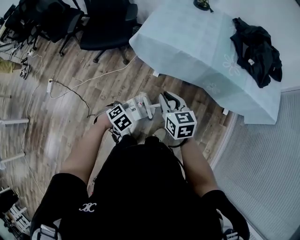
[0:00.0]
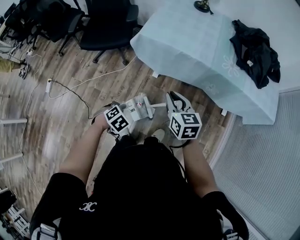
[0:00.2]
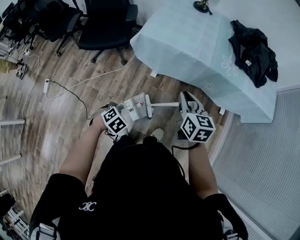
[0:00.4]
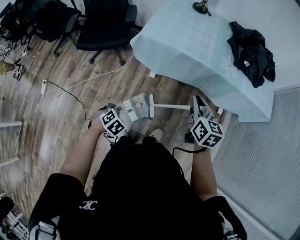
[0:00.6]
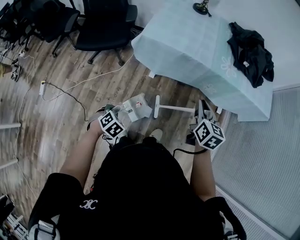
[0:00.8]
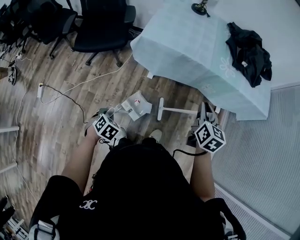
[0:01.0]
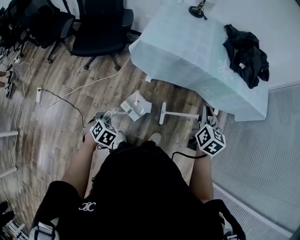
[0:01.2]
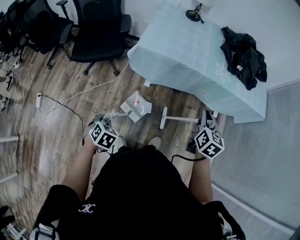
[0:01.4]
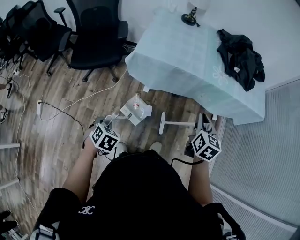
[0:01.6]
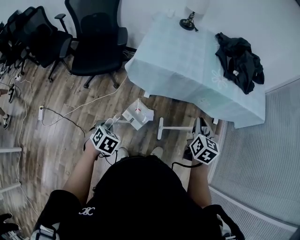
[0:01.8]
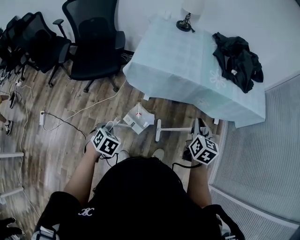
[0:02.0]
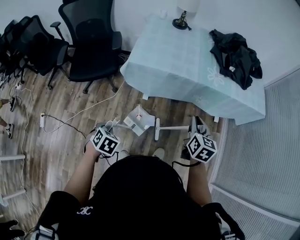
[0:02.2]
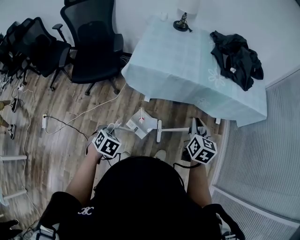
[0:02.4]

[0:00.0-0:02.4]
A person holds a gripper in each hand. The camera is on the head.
0:00.0 to 0:01.2: The right gripper shifts by roughly 15 cm, and rotates approximately 40 degrees.

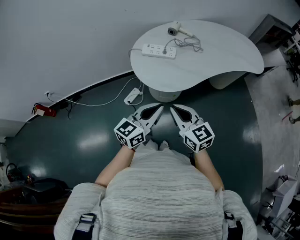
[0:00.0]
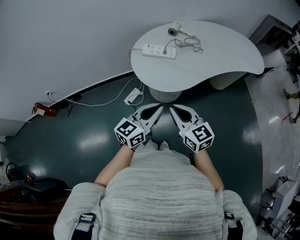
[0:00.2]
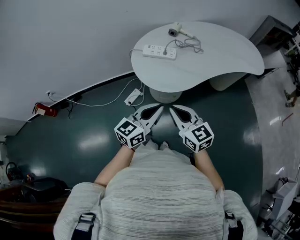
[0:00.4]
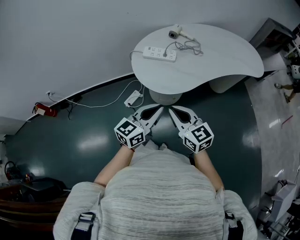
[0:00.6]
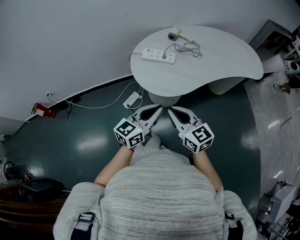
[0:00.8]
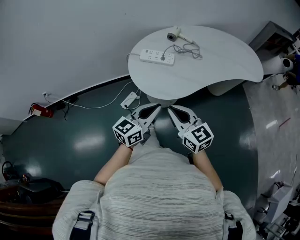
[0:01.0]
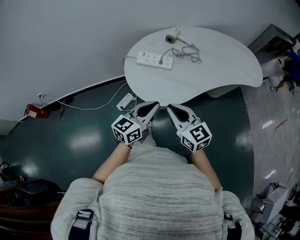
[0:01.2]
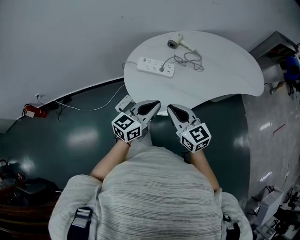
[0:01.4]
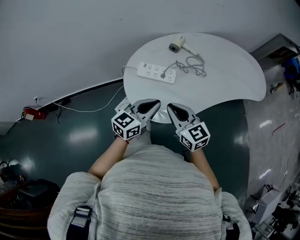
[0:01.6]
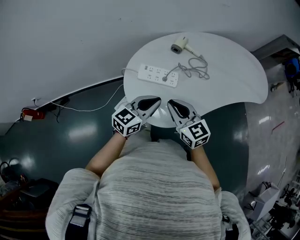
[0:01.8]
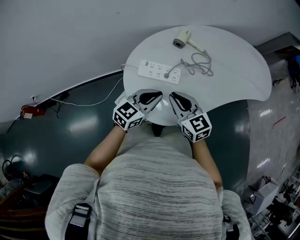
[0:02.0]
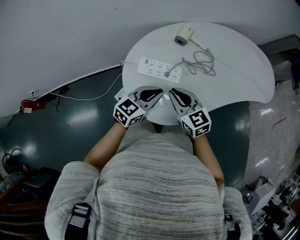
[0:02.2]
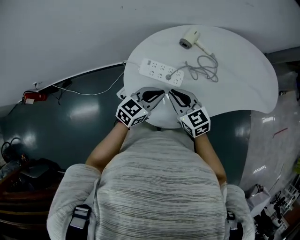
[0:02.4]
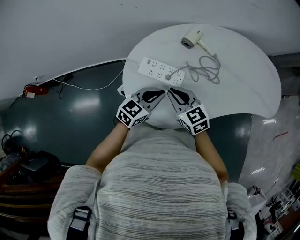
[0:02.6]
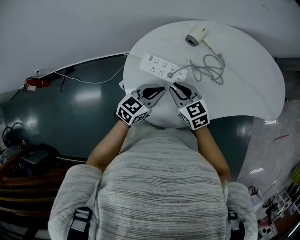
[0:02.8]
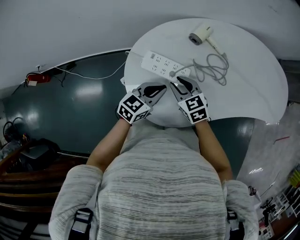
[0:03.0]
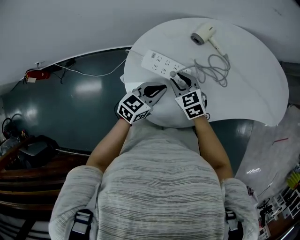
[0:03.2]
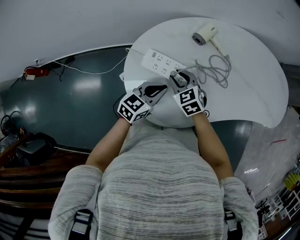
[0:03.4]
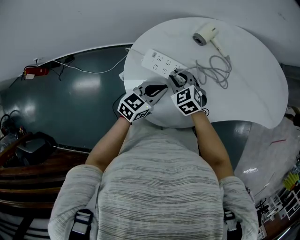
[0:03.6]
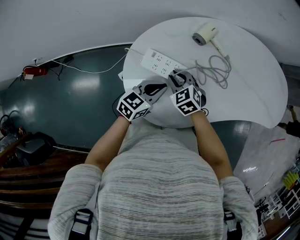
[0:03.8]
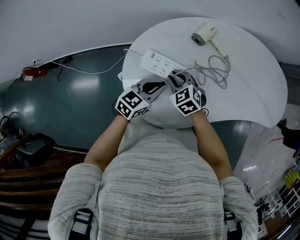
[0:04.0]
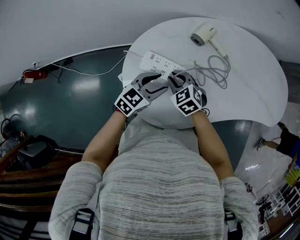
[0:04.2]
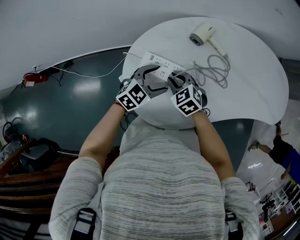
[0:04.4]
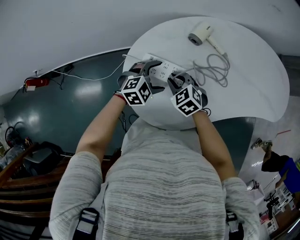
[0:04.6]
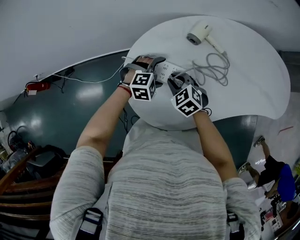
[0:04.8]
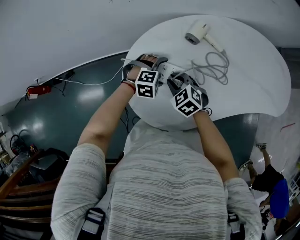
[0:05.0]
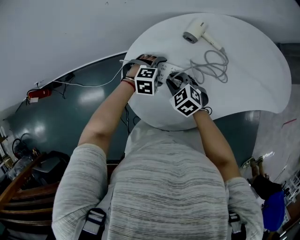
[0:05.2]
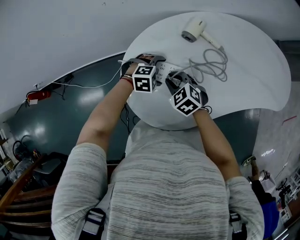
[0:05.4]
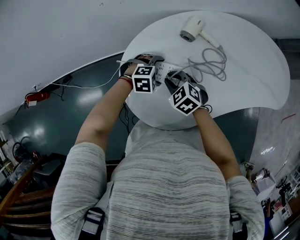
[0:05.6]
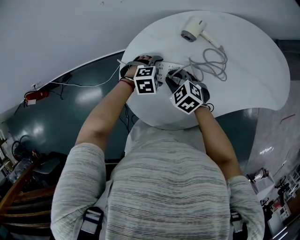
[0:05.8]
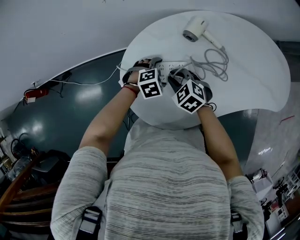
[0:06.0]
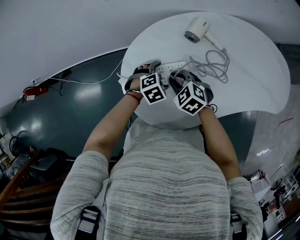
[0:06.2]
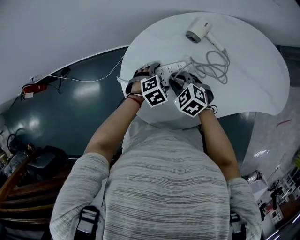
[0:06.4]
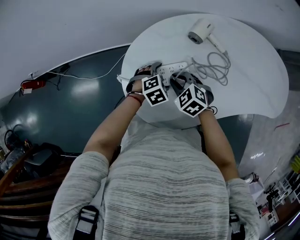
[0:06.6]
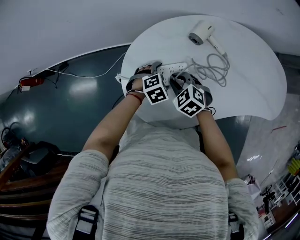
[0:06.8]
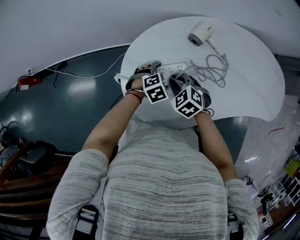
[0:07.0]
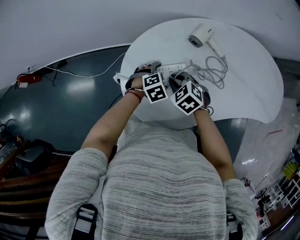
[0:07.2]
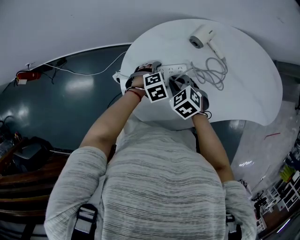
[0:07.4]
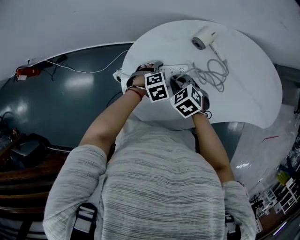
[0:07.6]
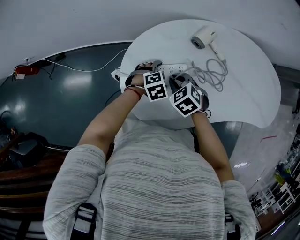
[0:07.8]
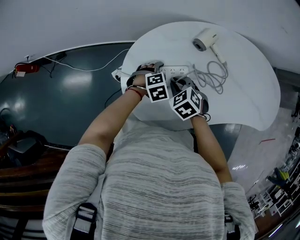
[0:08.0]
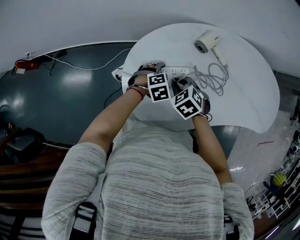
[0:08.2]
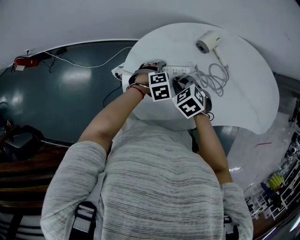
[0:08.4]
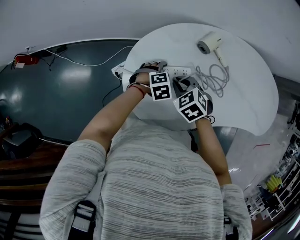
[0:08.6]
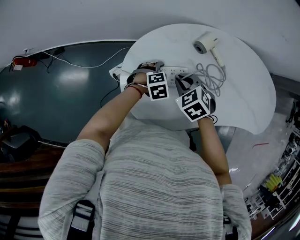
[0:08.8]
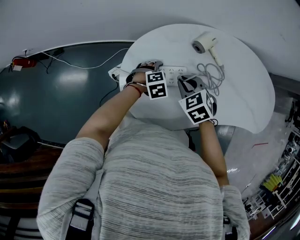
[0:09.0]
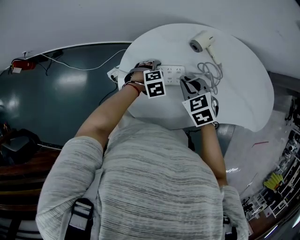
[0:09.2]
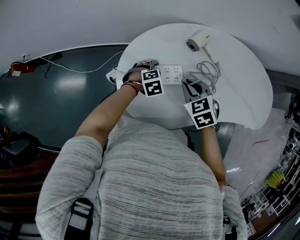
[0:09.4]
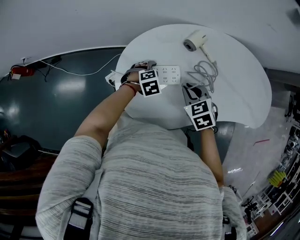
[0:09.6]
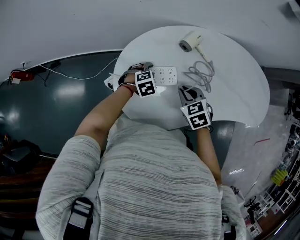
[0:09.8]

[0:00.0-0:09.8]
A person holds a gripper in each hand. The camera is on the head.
0:00.0 to 0:01.4: The two grippers go approximately 15 cm forward.
0:01.4 to 0:02.8: Both grippers move forward and downward, roughly 20 cm. The right gripper turns by about 20 degrees.
0:02.8 to 0:04.2: The left gripper opens up. Meanwhile the right gripper goes about 5 cm downward, and rotates about 20 degrees.
0:04.2 to 0:05.6: The left gripper goes roughly 10 cm downward, angles its fingers downward, by approximately 30 degrees, and opens its fingers.
0:05.6 to 0:07.0: The left gripper turns by some 30 degrees.
0:07.0 to 0:08.4: The grippers stay close to where they were, moving slightly.
0:08.4 to 0:09.8: The right gripper shifts by some 10 cm.

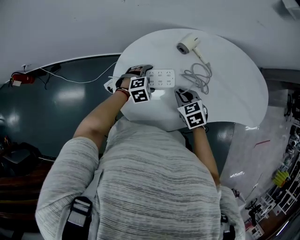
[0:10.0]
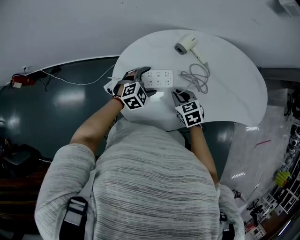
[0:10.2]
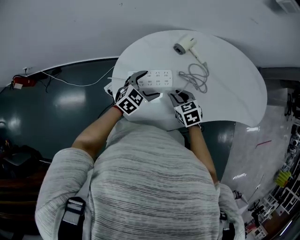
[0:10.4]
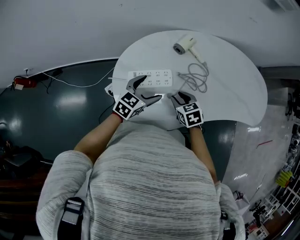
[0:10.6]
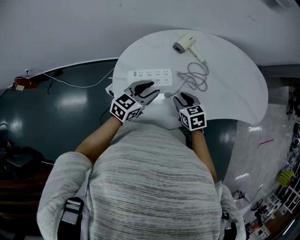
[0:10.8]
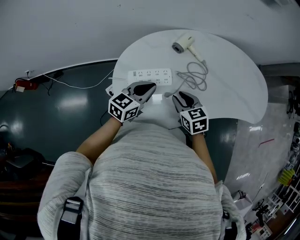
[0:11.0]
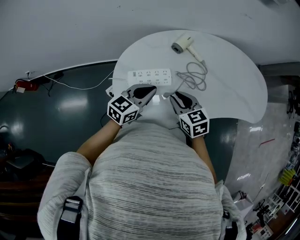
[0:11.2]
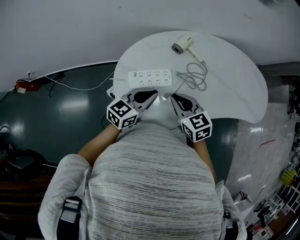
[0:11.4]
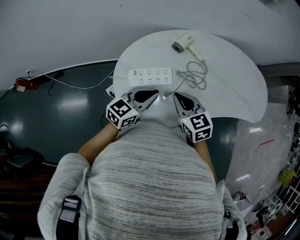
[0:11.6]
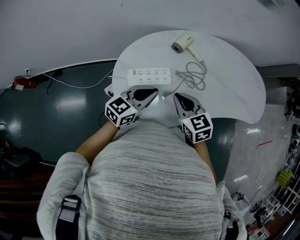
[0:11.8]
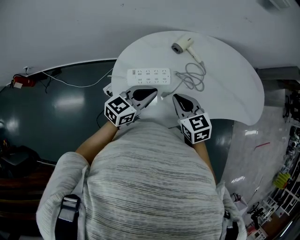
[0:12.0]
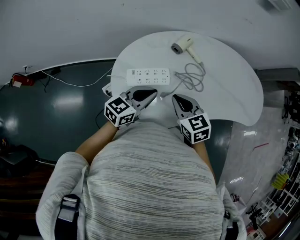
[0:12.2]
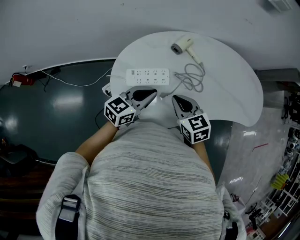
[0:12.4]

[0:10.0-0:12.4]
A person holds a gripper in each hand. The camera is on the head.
0:10.0 to 0:11.2: The left gripper moves upward, approximately 15 cm, tips its fingers upward by some 40 degrees, and closes up. The right gripper goes roughly 10 cm upward.
0:11.2 to 0:12.4: The right gripper closes up.

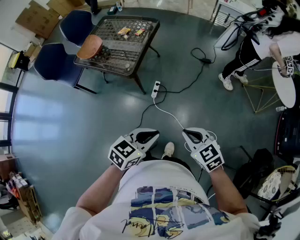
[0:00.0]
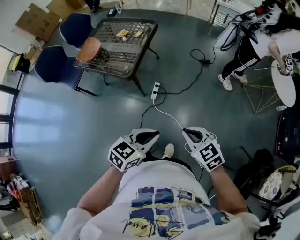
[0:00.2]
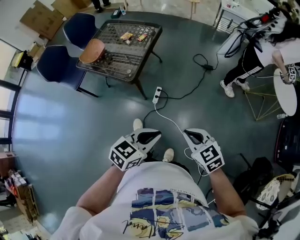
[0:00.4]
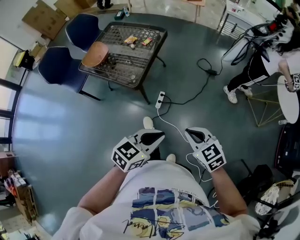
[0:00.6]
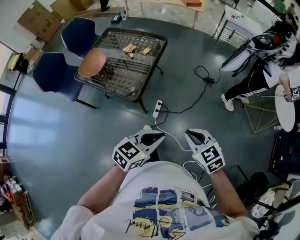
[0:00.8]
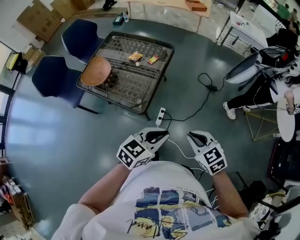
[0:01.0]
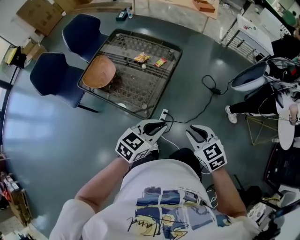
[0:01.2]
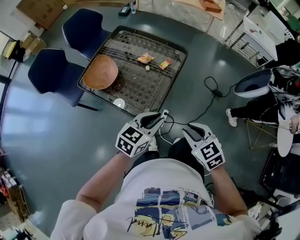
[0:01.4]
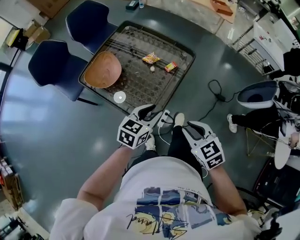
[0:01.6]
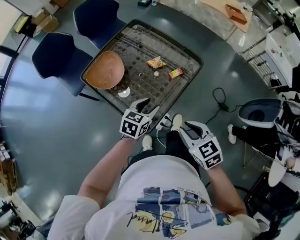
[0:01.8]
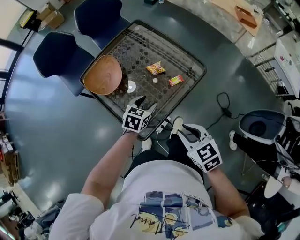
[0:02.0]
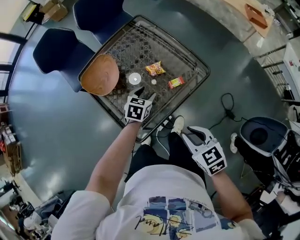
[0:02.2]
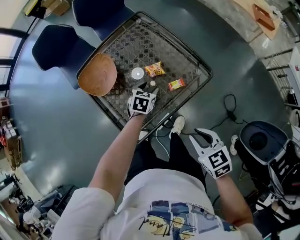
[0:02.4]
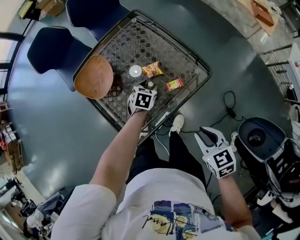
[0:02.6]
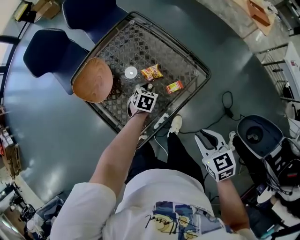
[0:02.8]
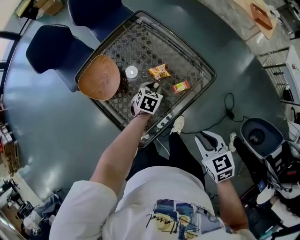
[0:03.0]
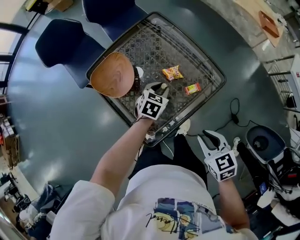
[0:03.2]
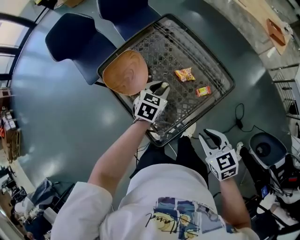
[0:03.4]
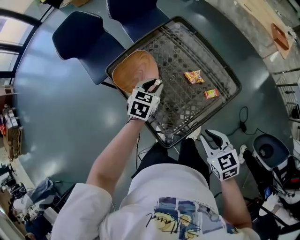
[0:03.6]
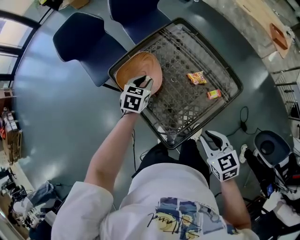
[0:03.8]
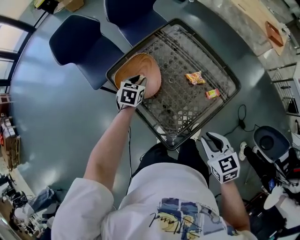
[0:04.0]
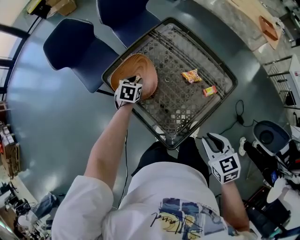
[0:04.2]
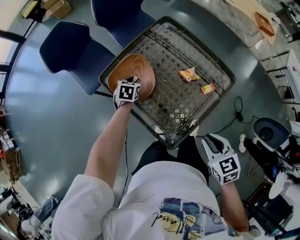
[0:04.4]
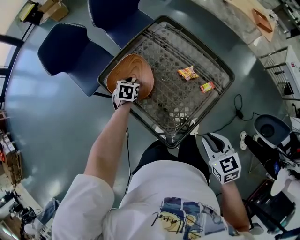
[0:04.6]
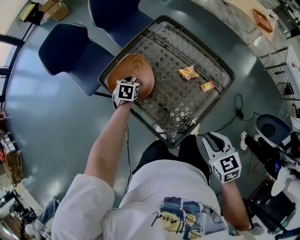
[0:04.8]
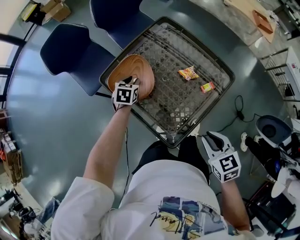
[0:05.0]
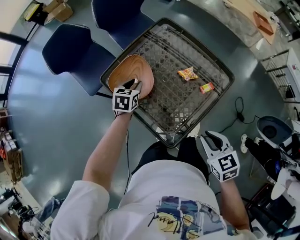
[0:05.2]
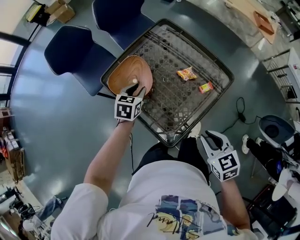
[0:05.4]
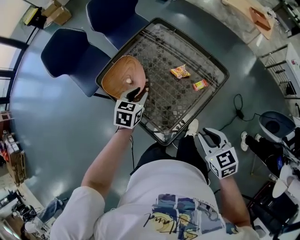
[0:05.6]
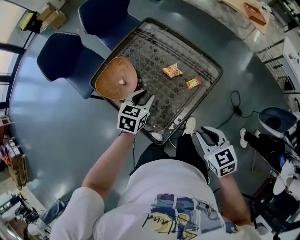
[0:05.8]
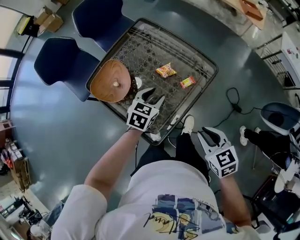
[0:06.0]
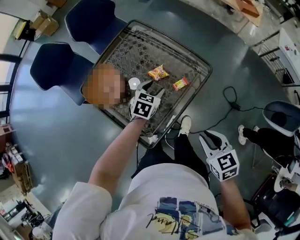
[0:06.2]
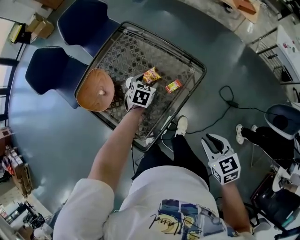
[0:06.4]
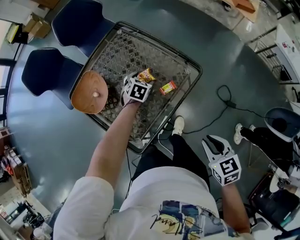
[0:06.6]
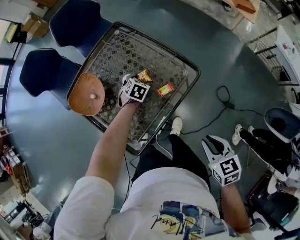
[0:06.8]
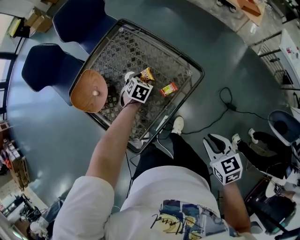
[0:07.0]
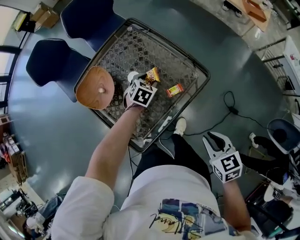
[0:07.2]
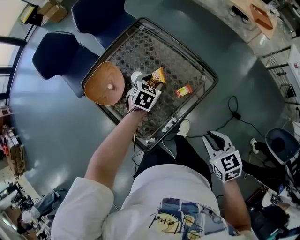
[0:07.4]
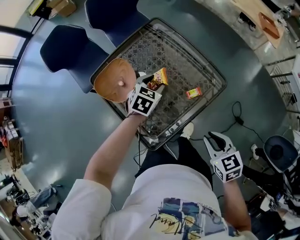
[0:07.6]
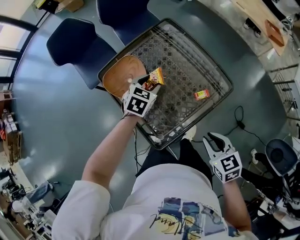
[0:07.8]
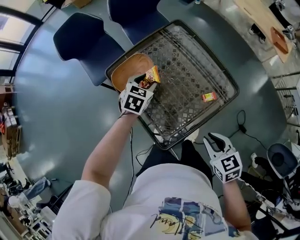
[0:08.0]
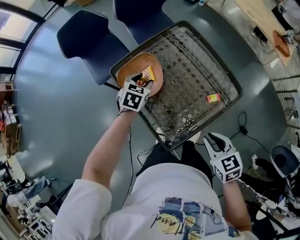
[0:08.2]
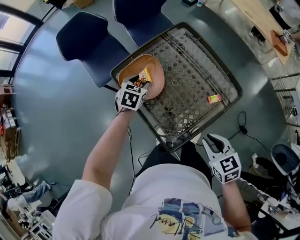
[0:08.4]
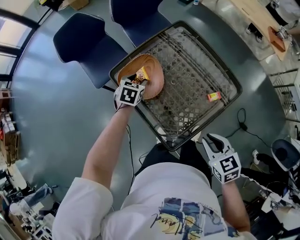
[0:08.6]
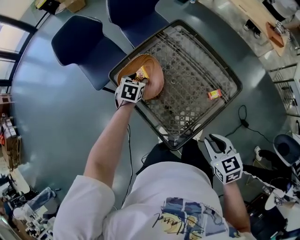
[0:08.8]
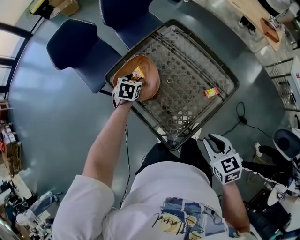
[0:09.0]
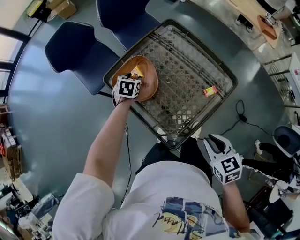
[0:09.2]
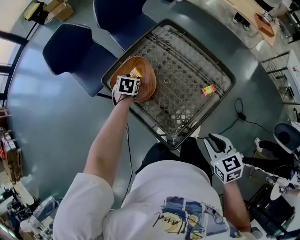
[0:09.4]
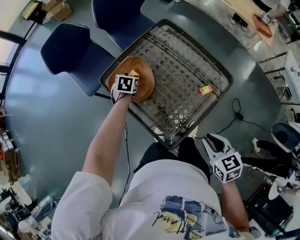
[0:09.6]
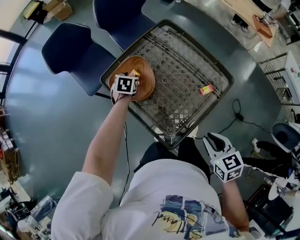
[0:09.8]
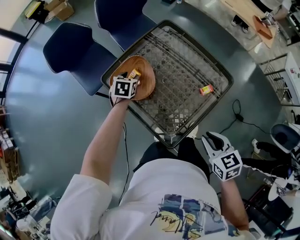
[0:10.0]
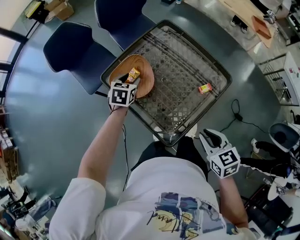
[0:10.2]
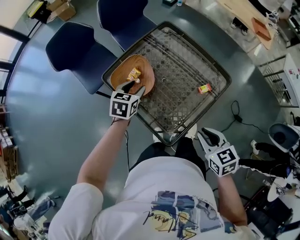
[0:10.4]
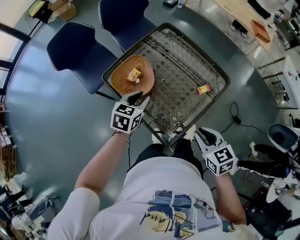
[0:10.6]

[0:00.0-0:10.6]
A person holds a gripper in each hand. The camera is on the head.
0:00.0 to 0:01.6: The pair of grippers is taken forward and to the left, about 50 cm. The left gripper turns by roughly 20 degrees, and opens up.
0:01.6 to 0:03.0: The left gripper moves about 35 cm, turns by about 30 degrees, and opens, then closes once more. The right gripper shifts by some 20 cm.
0:03.0 to 0:04.6: The left gripper goes roughly 30 cm to the left. Meanwhile the right gripper heads to the left, covering about 15 cm.
0:04.6 to 0:06.0: The left gripper travels to the right, backward and upward by about 30 cm, and changes its angle by roughly 30 degrees. The right gripper heads to the right, covering some 10 cm.
0:06.0 to 0:07.6: The right gripper is displaced forward and to the right by about 10 cm. Meanwhile the left gripper travels forward by about 10 cm, and reaches roughly 15 cm downward, then returns.
0:07.6 to 0:09.0: The right gripper travels to the left by approximately 15 cm, while the left gripper moves to the left, some 25 cm.
0:09.0 to 0:10.6: The left gripper heads backward, upward and to the right, covering about 20 cm.
